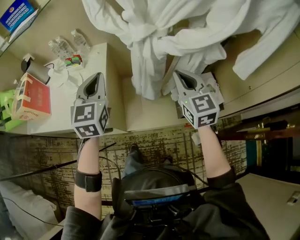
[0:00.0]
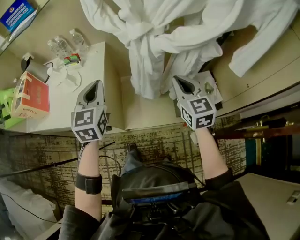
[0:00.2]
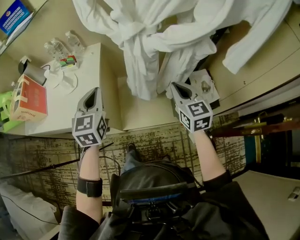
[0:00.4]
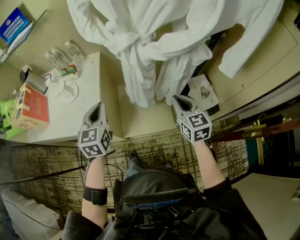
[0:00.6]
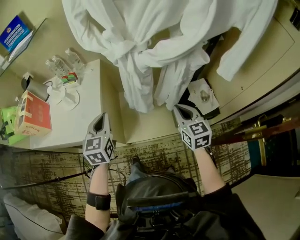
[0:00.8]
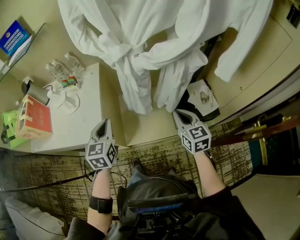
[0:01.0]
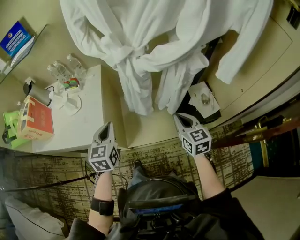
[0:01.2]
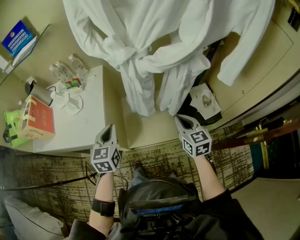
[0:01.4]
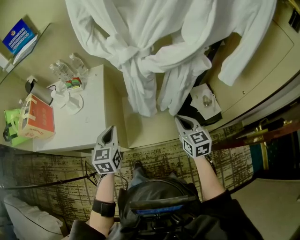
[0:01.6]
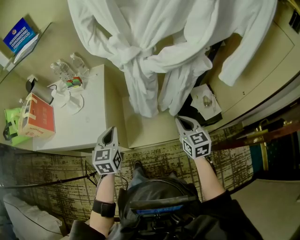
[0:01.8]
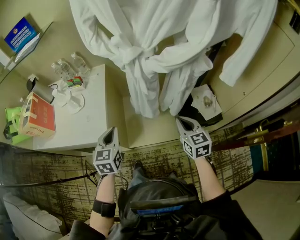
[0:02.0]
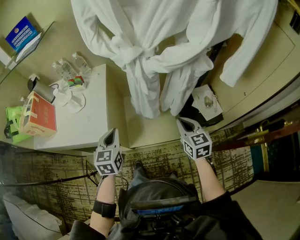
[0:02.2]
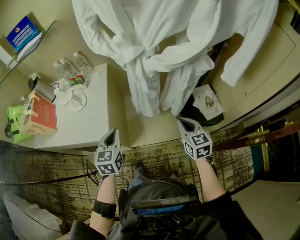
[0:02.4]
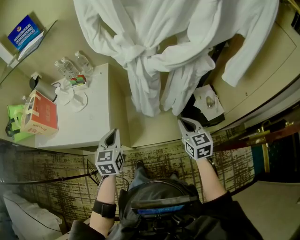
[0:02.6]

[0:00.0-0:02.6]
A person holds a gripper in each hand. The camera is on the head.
0:00.0 to 0:01.2: The left gripper moves downward and backward, approximately 15 cm; the right gripper heads downward, backward and to the right, covering about 15 cm.
0:01.2 to 0:02.6: The grippers stay close to where they were, moving slightly.

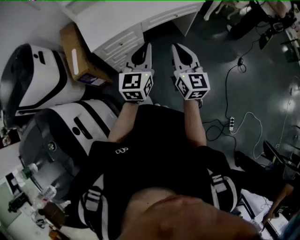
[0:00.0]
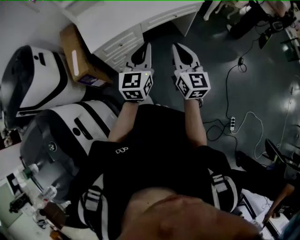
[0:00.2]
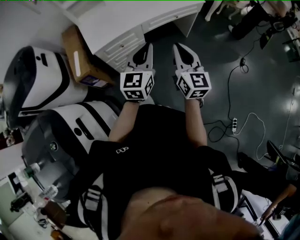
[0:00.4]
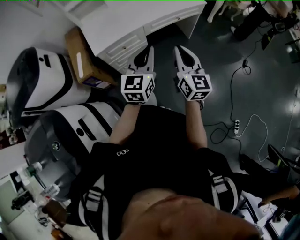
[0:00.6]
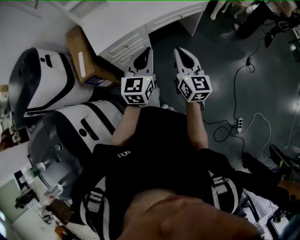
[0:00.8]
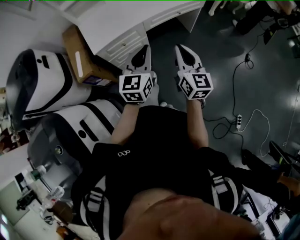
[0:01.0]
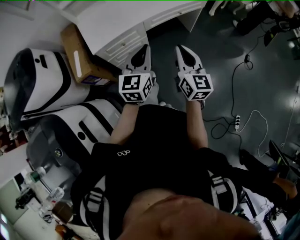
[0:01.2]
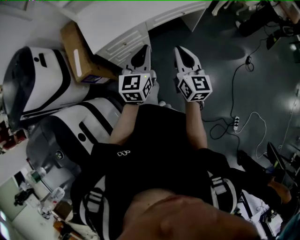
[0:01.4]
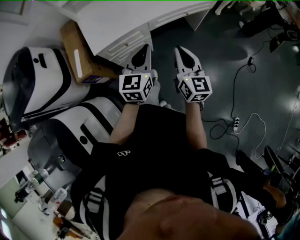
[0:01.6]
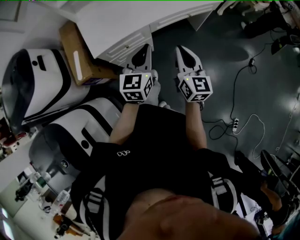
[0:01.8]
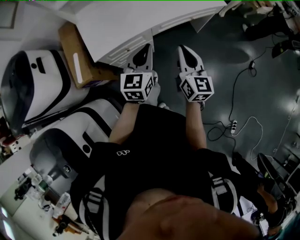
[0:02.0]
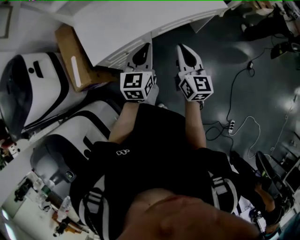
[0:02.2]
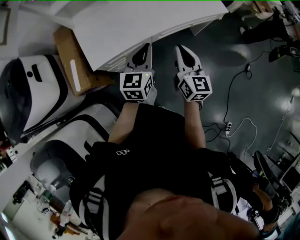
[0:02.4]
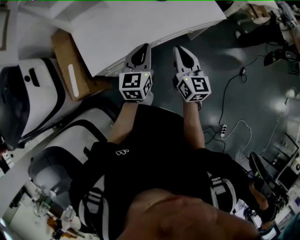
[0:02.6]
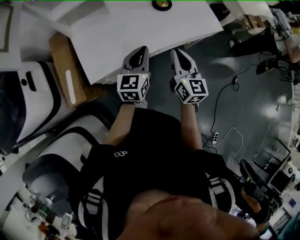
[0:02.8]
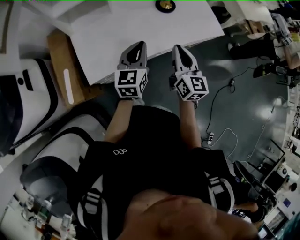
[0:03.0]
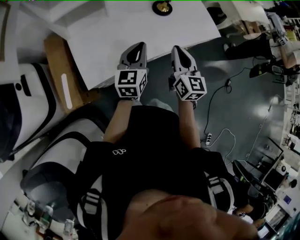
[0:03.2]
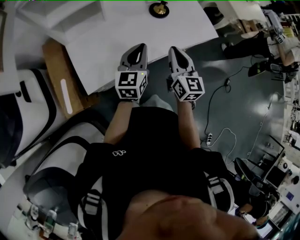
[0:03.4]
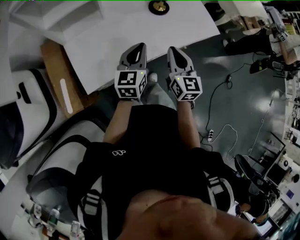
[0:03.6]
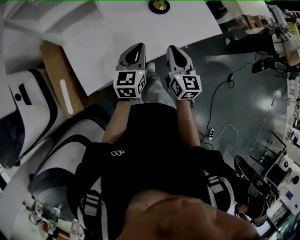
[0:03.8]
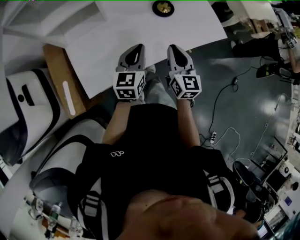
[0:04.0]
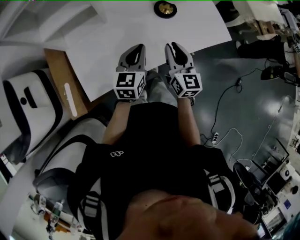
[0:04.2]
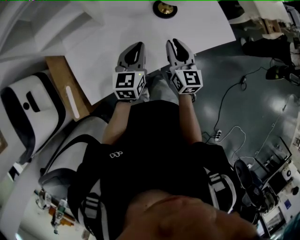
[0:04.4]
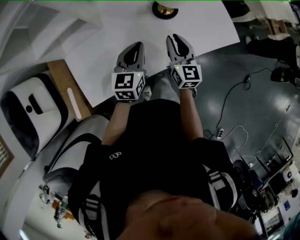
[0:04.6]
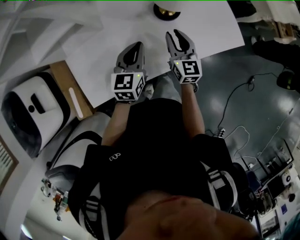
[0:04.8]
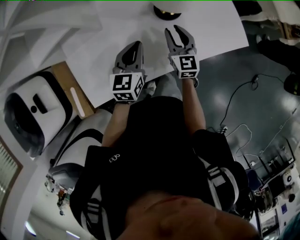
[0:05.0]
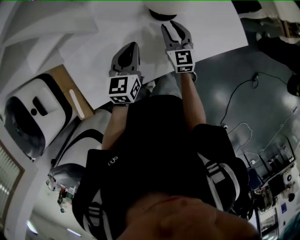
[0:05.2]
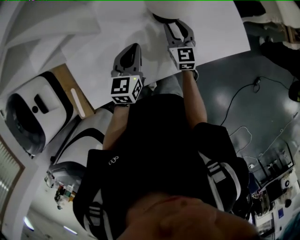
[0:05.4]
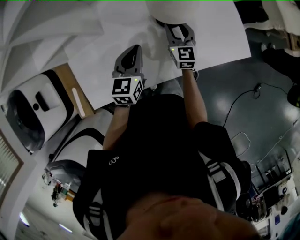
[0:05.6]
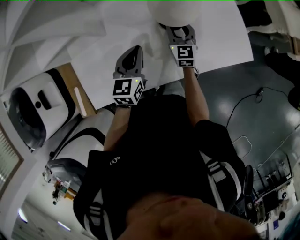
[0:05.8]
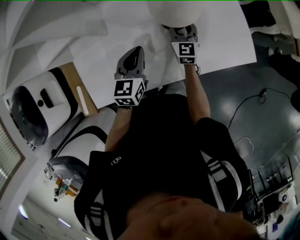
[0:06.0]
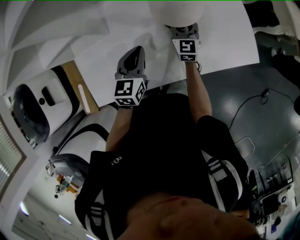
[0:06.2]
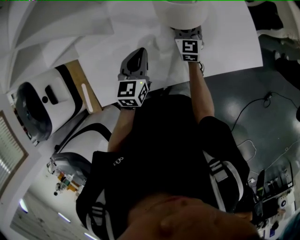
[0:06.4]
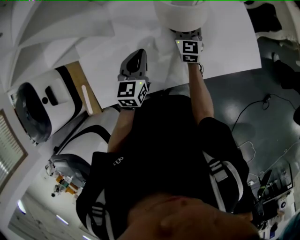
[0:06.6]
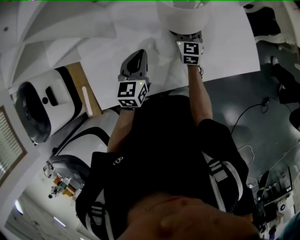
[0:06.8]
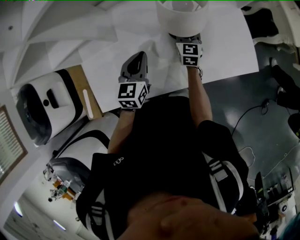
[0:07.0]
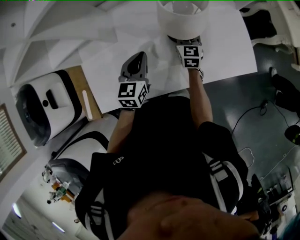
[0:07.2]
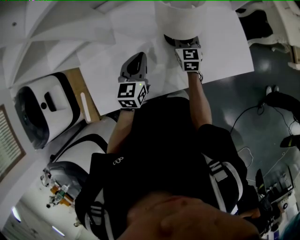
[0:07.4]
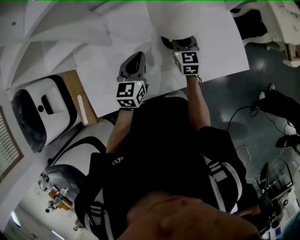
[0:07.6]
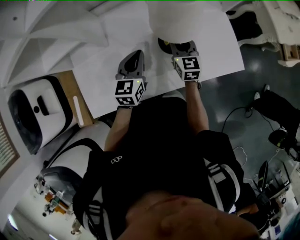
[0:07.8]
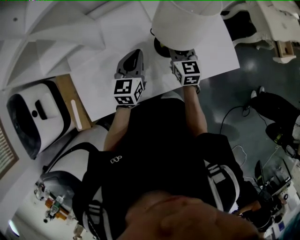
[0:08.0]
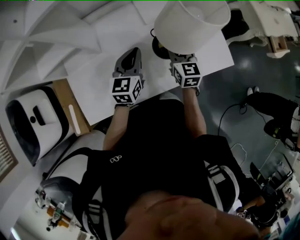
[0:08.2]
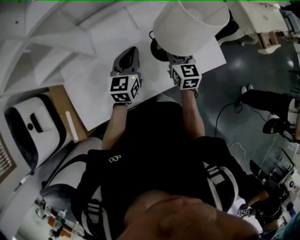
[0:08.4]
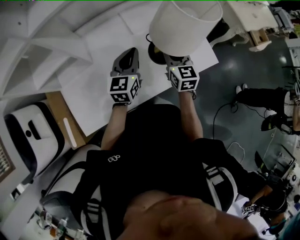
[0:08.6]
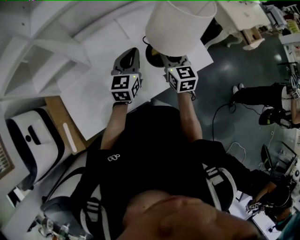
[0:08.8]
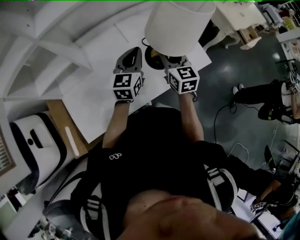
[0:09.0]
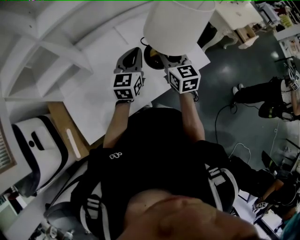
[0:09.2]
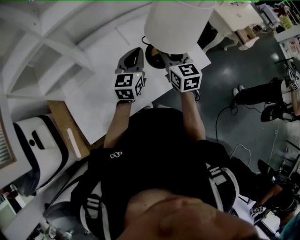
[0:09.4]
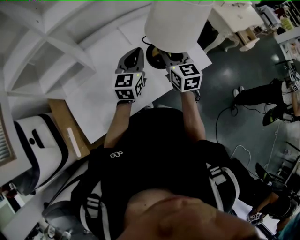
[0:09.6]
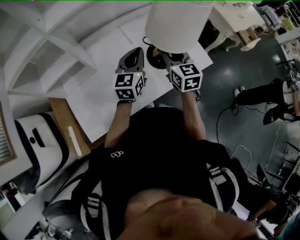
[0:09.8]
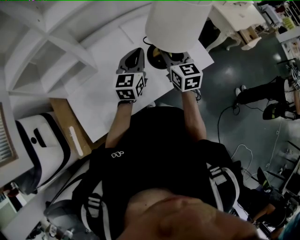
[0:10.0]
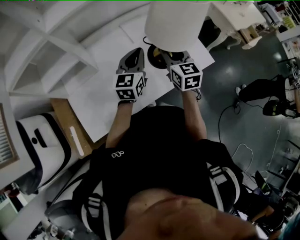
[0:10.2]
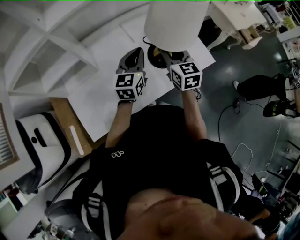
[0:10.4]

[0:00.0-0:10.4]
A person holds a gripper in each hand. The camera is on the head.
0:00.0 to 0:01.4: Both grippers travel together forward, approximately 5 cm.
0:01.4 to 0:03.0: The two grippers go roughly 30 cm forward.
0:03.0 to 0:04.4: The right gripper heads forward and downward, covering about 20 cm. Meanwhile the left gripper is displaced forward by some 15 cm.
0:04.4 to 0:06.0: The right gripper heads forward and downward, covering some 25 cm. The left gripper goes roughly 10 cm forward.
0:06.0 to 0:07.4: The grippers move only a little.
0:07.4 to 0:09.0: The right gripper shifts approximately 20 cm upward and backward. The left gripper travels upward and to the right by some 15 cm, and turns by some 20 degrees.
0:09.0 to 0:10.4: The grippers stay close to where they were, moving slightly.

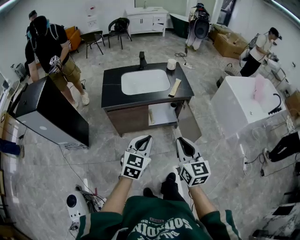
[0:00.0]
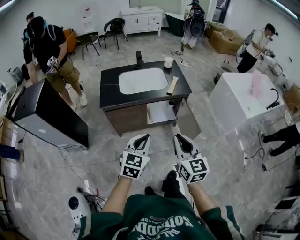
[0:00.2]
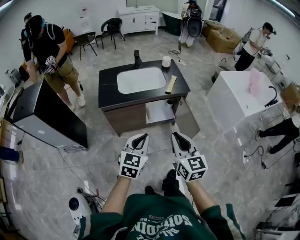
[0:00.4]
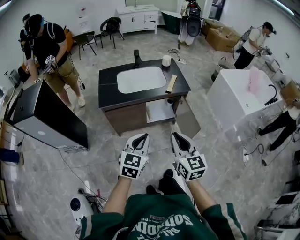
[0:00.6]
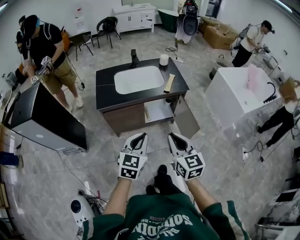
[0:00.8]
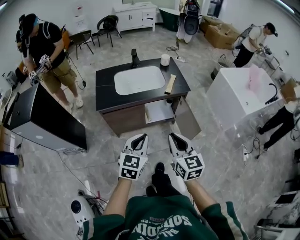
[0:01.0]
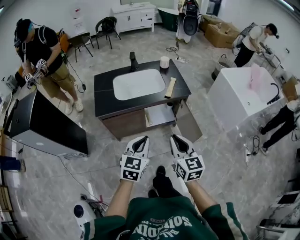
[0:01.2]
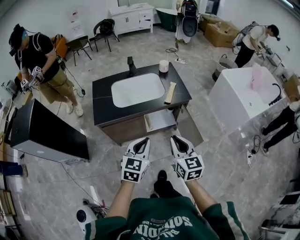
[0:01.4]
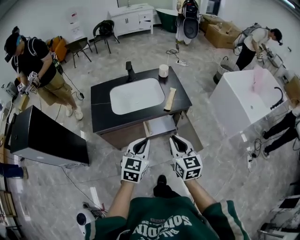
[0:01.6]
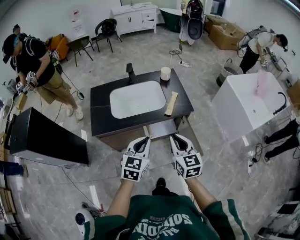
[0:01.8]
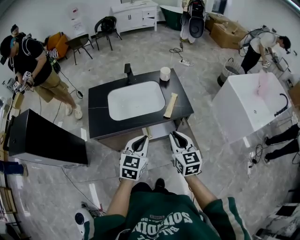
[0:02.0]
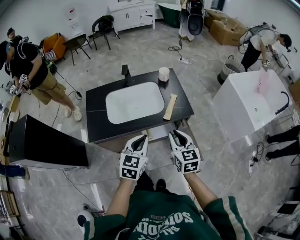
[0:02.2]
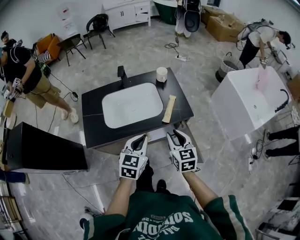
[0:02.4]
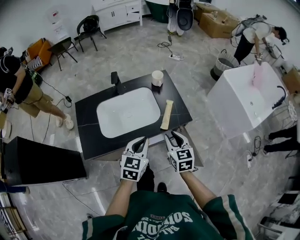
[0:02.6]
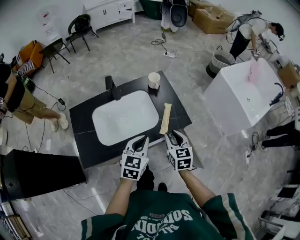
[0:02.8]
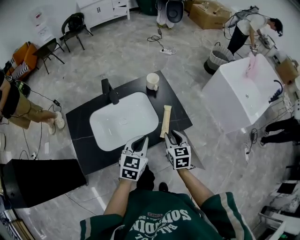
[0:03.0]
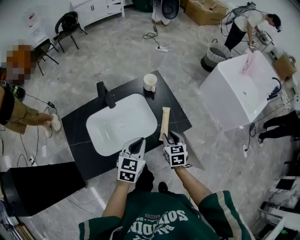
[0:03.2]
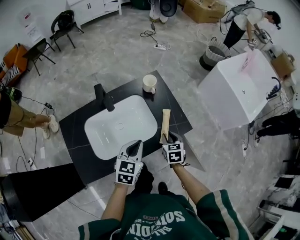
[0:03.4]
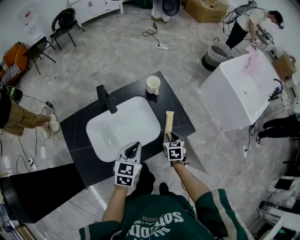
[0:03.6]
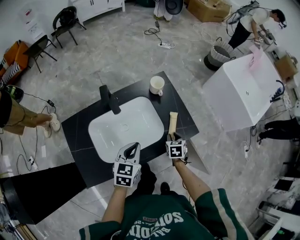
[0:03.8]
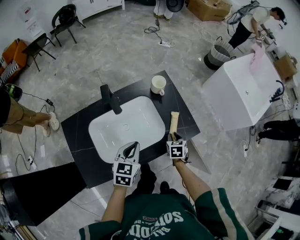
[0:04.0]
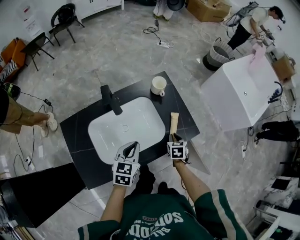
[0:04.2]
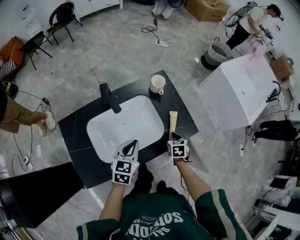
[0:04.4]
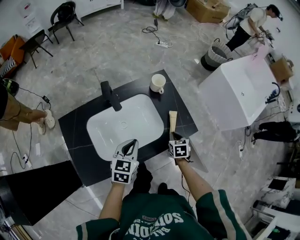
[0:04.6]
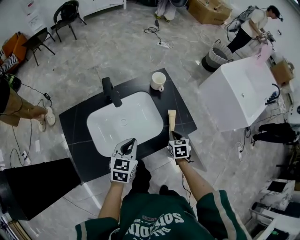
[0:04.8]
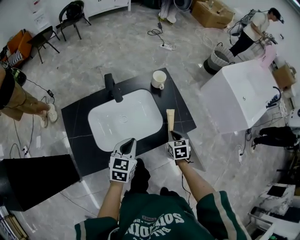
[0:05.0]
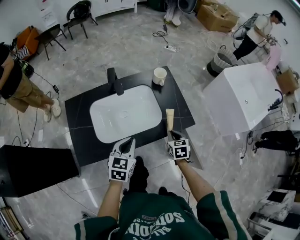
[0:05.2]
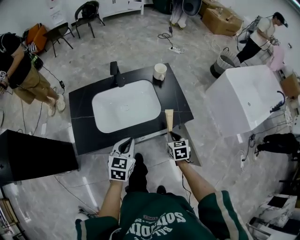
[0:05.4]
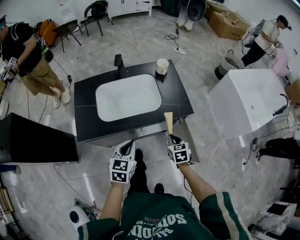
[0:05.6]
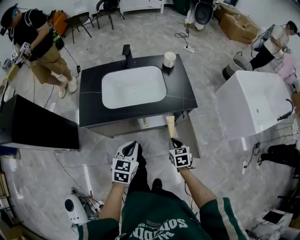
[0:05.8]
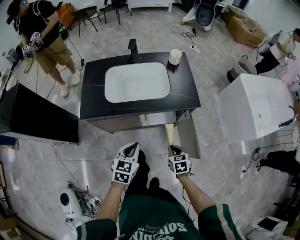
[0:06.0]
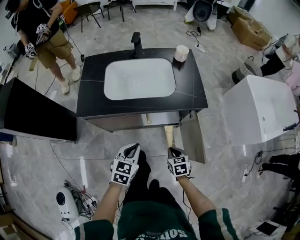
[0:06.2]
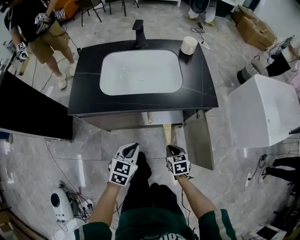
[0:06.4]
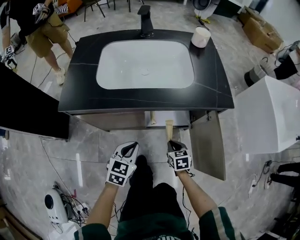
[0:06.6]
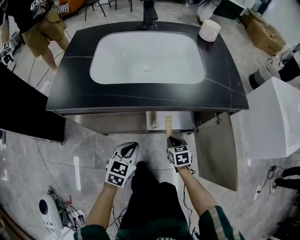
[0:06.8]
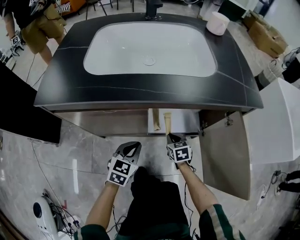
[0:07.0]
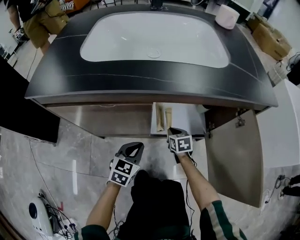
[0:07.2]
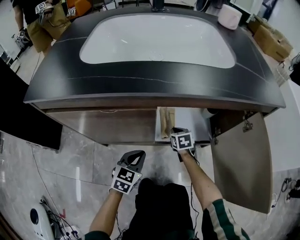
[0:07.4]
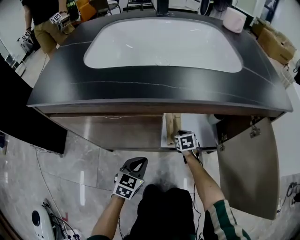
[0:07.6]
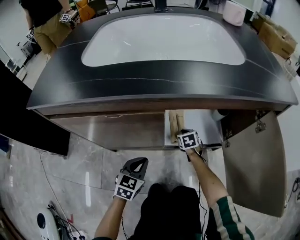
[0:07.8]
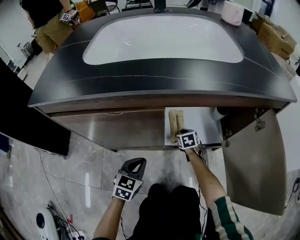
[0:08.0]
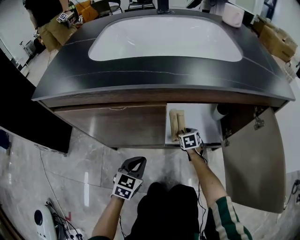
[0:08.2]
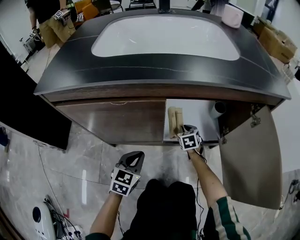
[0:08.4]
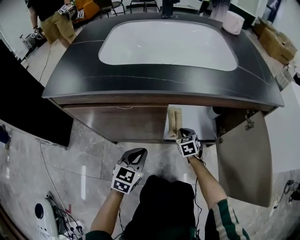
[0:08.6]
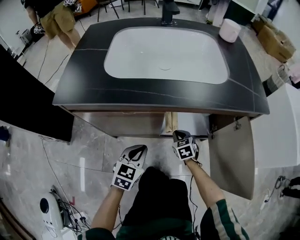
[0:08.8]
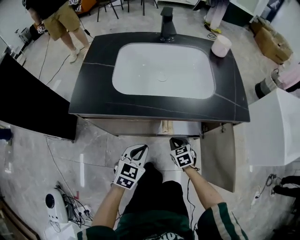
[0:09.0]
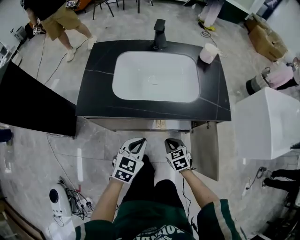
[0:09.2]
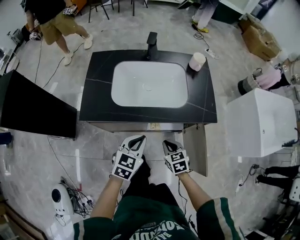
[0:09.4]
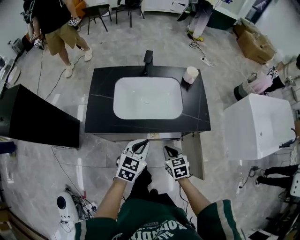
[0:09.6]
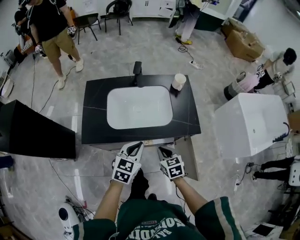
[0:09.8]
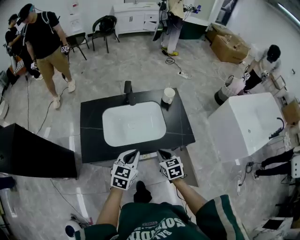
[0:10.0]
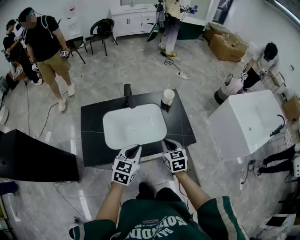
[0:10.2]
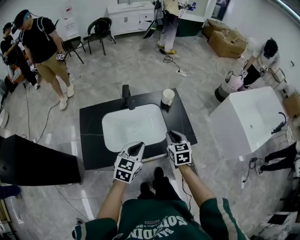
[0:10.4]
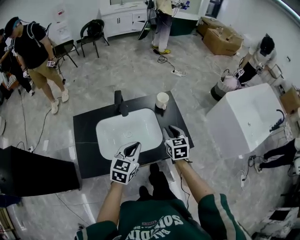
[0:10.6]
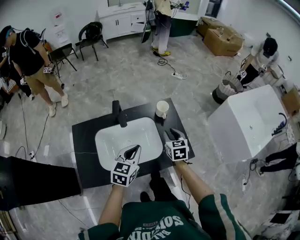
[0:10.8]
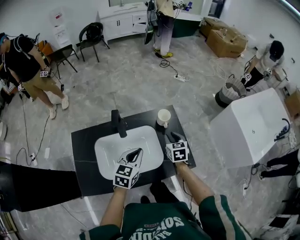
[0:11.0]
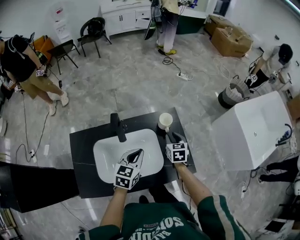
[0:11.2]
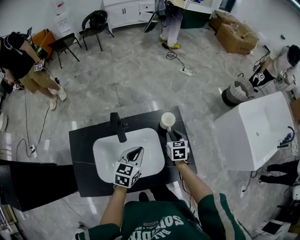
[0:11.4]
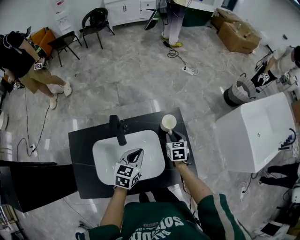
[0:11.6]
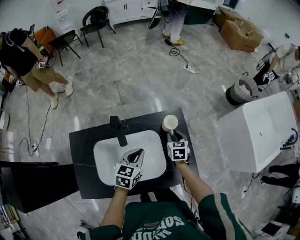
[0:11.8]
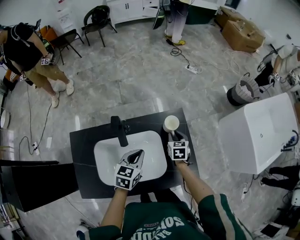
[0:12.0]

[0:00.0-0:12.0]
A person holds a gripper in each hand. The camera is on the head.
0:00.0 to 0:01.6: The grippers both shift forward by some 20 cm.
0:01.6 to 0:03.0: The left gripper is displaced forward by roughly 30 cm, while the right gripper heads forward and downward, covering about 35 cm, and rotates approximately 20 degrees.
0:03.0 to 0:04.4: The right gripper is displaced downward and forward by approximately 15 cm, and turns by about 20 degrees, while the left gripper shifts about 15 cm to the left, downward and forward.
0:04.4 to 0:06.0: The left gripper shifts by roughly 35 cm. The right gripper ends up approximately 35 cm from where it was, and swivels approximately 30 degrees.
0:06.0 to 0:07.6: The left gripper travels downward by about 50 cm; the right gripper travels downward and forward by some 60 cm.
0:07.6 to 0:09.0: The right gripper travels upward and backward by about 30 cm; the left gripper shifts approximately 30 cm upward.
0:09.0 to 0:10.4: The left gripper moves upward and forward, roughly 40 cm; the right gripper is displaced upward by about 50 cm, and swivels approximately 30 degrees.
0:10.4 to 0:12.0: The right gripper is displaced forward and downward by approximately 35 cm; the left gripper heads forward, covering some 25 cm.
